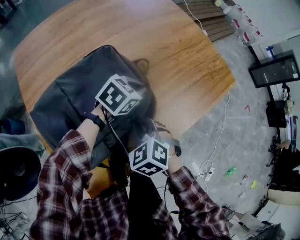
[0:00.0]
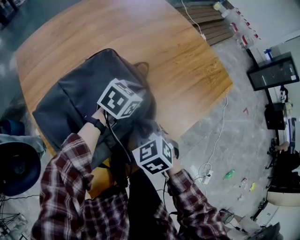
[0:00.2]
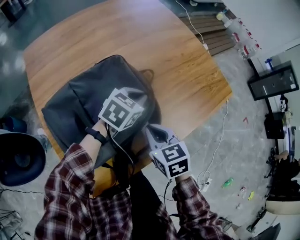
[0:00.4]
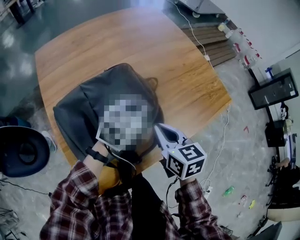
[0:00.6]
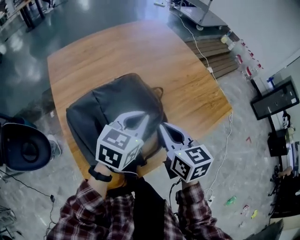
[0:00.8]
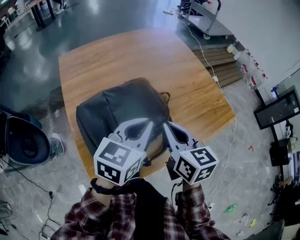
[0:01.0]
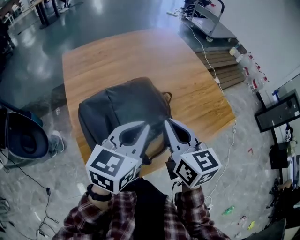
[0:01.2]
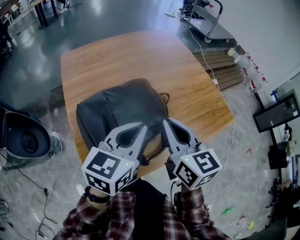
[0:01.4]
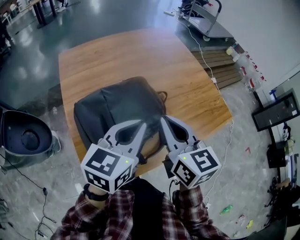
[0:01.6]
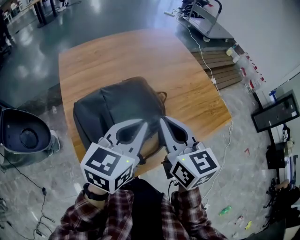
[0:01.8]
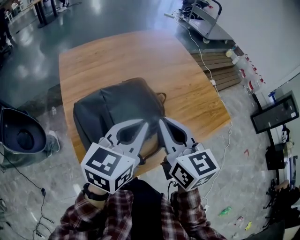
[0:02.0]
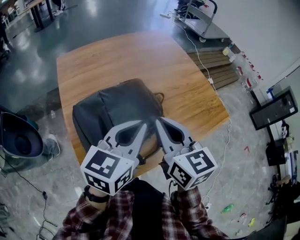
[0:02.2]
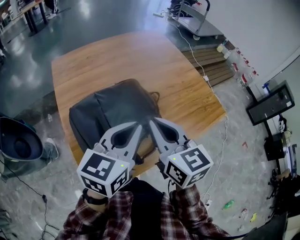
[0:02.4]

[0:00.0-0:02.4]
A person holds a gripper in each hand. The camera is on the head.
0:00.0 to 0:01.2: The right gripper shifts roughly 25 cm upward, and tips its fingers upward by approximately 40 degrees; the left gripper heads upward and backward, covering approximately 30 cm, and rotates approximately 40 degrees.
0:01.2 to 0:02.4: The grippers stay close to where they were, moving slightly.

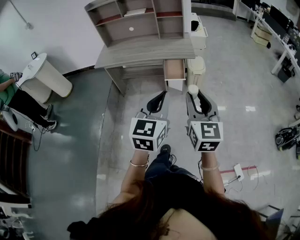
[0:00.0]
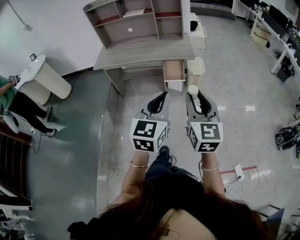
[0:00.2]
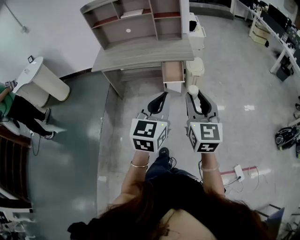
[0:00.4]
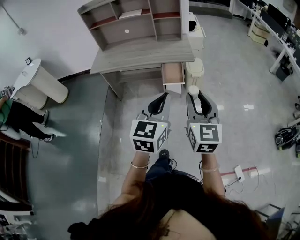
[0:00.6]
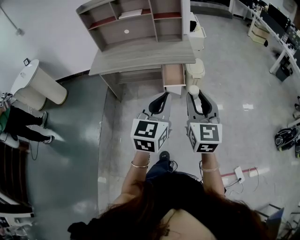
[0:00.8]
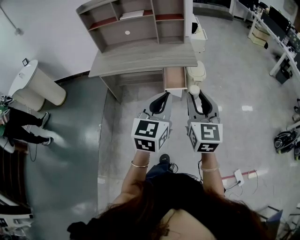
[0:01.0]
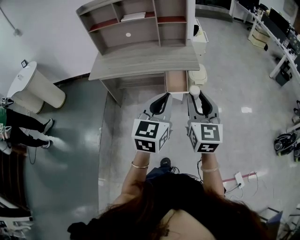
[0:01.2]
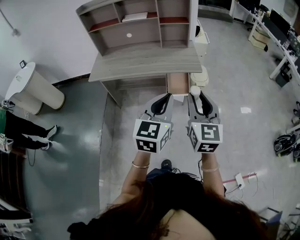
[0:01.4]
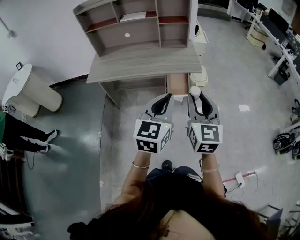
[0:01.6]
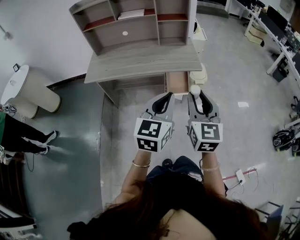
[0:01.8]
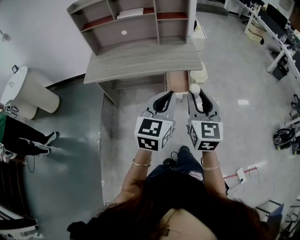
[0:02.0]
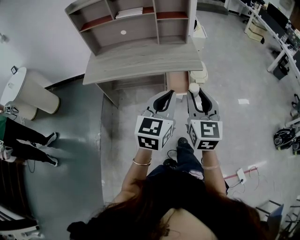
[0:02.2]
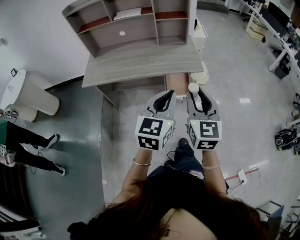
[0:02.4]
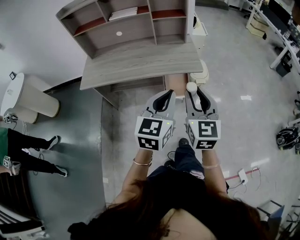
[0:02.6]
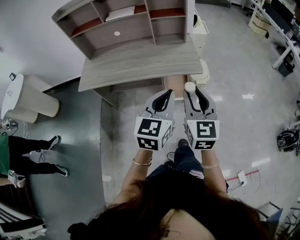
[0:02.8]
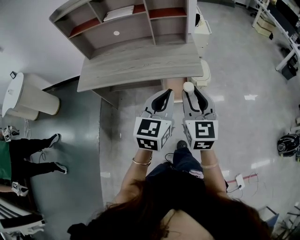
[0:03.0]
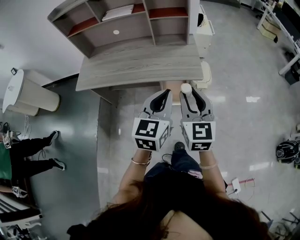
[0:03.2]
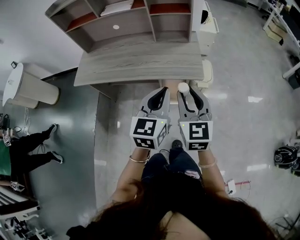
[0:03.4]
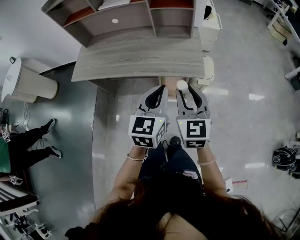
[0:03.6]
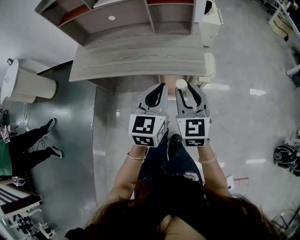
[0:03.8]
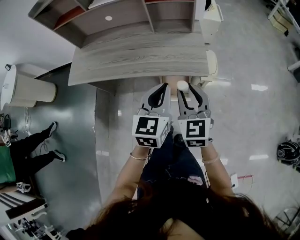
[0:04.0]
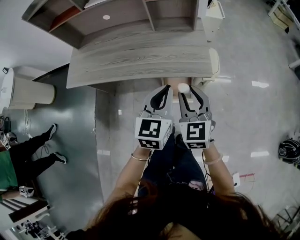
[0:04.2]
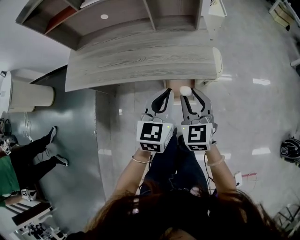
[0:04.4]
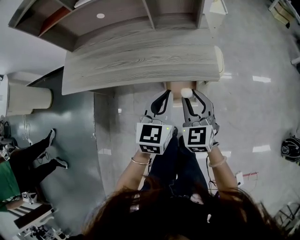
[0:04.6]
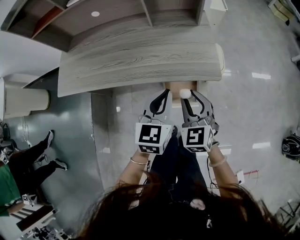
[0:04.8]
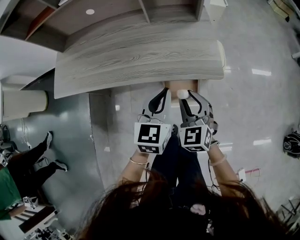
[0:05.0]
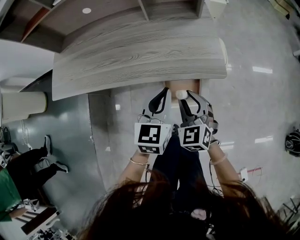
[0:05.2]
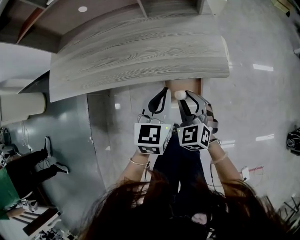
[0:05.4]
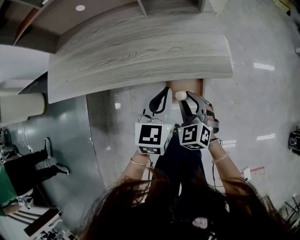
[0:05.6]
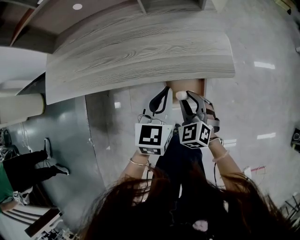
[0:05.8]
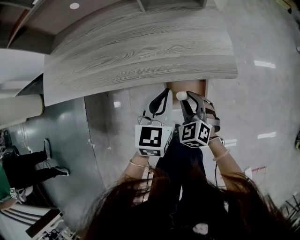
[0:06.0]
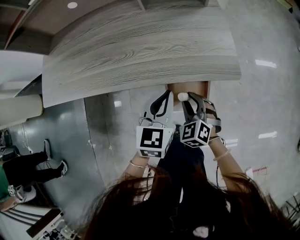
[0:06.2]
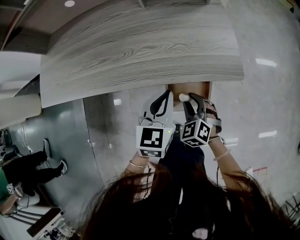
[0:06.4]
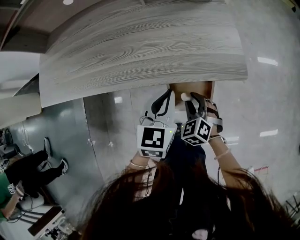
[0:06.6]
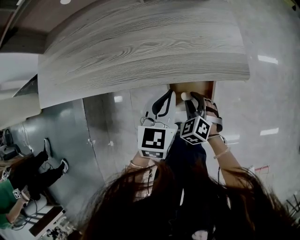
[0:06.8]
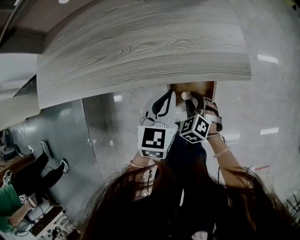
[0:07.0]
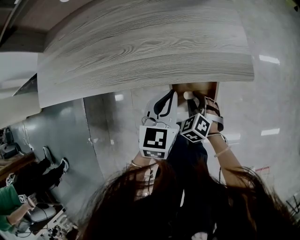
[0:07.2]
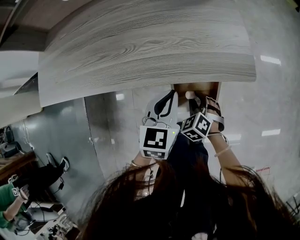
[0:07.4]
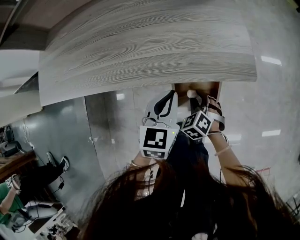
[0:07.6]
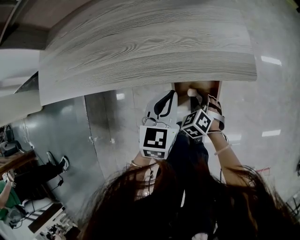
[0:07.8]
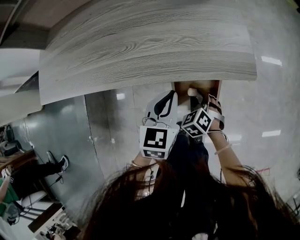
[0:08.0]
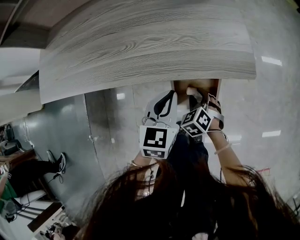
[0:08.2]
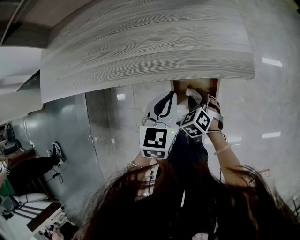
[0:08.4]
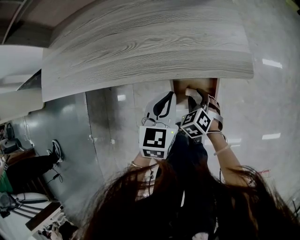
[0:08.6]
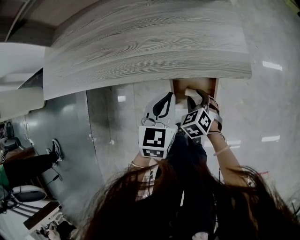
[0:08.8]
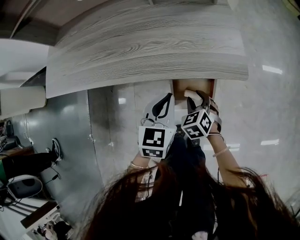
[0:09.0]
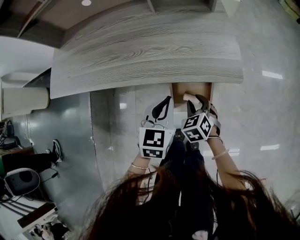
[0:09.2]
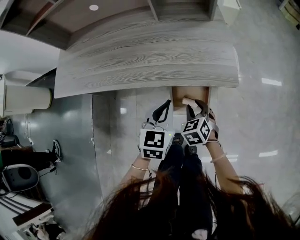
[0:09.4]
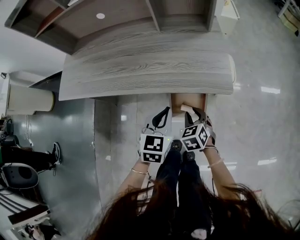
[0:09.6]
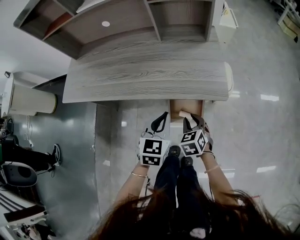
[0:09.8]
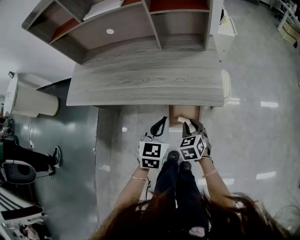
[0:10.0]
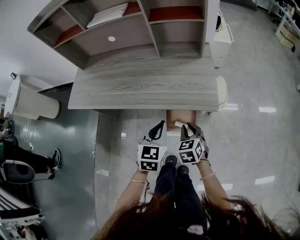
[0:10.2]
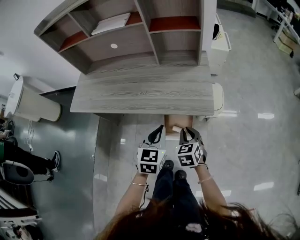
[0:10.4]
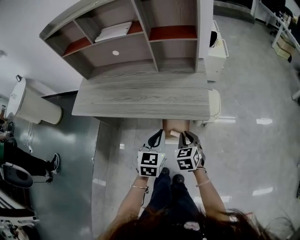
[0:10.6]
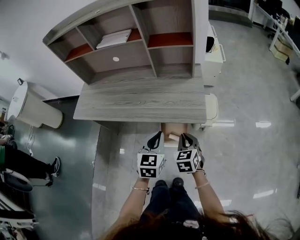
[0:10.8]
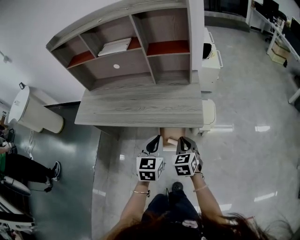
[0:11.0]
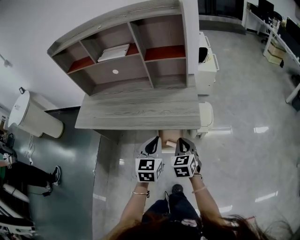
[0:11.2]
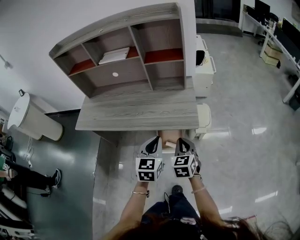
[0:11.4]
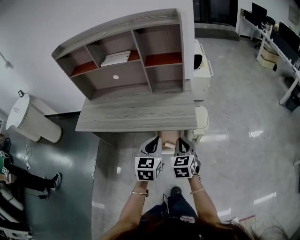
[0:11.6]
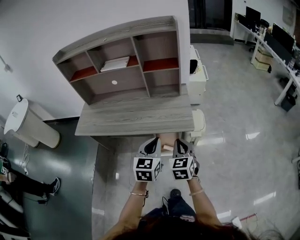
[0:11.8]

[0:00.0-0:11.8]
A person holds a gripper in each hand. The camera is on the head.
0:00.0 to 0:01.4: The two grippers go some 20 cm forward and to the left.
0:01.4 to 0:03.0: The two grippers go approximately 20 cm forward.
0:03.0 to 0:04.4: Both grippers move forward and downward, about 20 cm.
0:04.4 to 0:06.0: The right gripper shifts about 25 cm downward, and rotates about 30 degrees. Meanwhile the left gripper goes some 20 cm downward and forward.
0:06.0 to 0:07.4: The left gripper goes approximately 5 cm downward. Meanwhile the right gripper is displaced downward by some 15 cm.
0:07.4 to 0:08.8: The grippers stay close to where they were, moving slightly.
0:08.8 to 0:10.4: The two grippers go roughly 20 cm upward. The right gripper swivels roughly 20 degrees, and closes its fingers.
0:10.4 to 0:11.8: The grippers both shift upward and backward by about 20 cm.

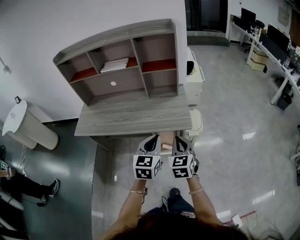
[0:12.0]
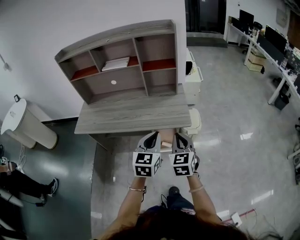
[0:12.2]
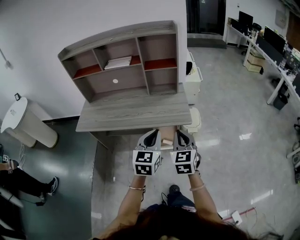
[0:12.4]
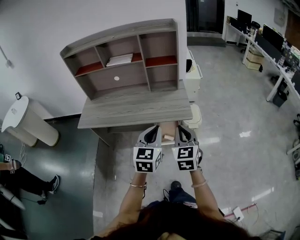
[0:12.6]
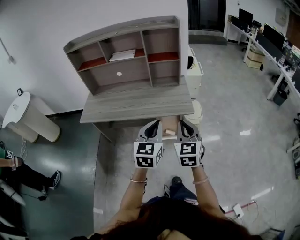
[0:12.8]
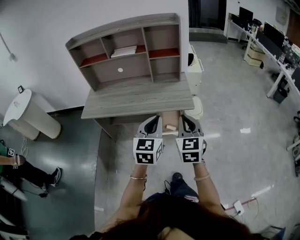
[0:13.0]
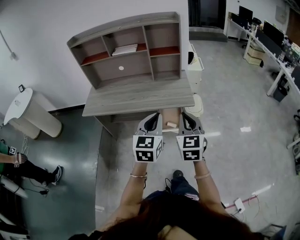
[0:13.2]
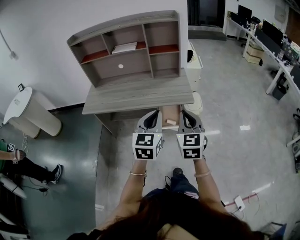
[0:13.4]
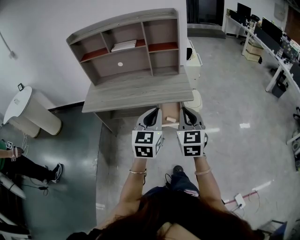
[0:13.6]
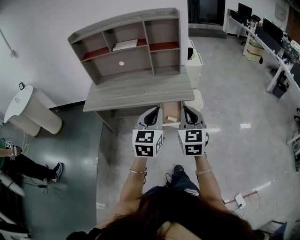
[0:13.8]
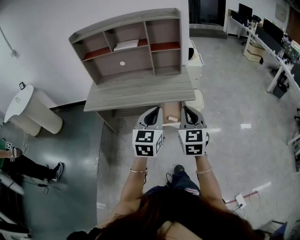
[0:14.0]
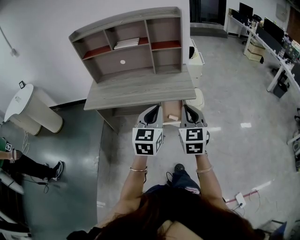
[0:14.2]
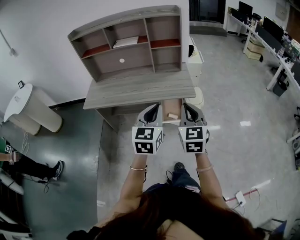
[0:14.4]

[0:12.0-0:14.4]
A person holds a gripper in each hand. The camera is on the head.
0:12.0 to 0:13.2: Both grippers travel together backward and upward, about 15 cm.
0:13.2 to 0:14.4: The grippers stay close to where they were, moving slightly.

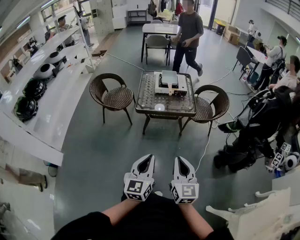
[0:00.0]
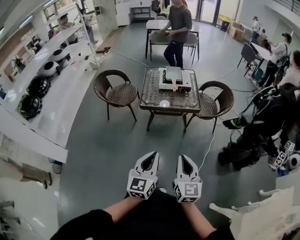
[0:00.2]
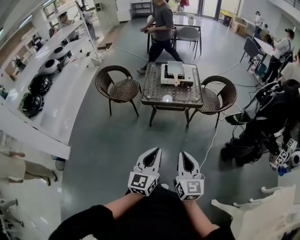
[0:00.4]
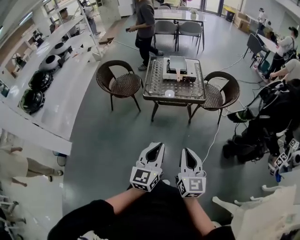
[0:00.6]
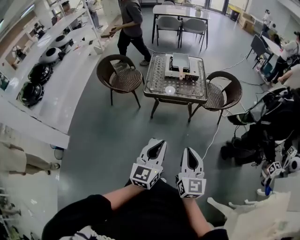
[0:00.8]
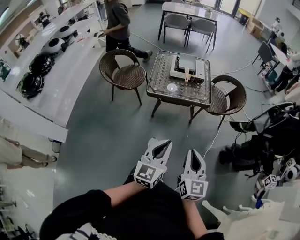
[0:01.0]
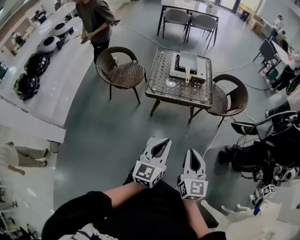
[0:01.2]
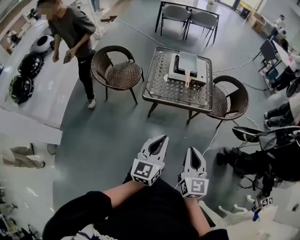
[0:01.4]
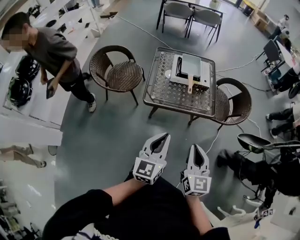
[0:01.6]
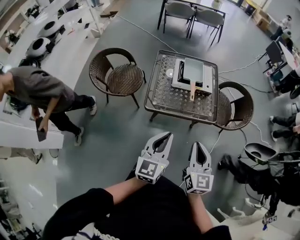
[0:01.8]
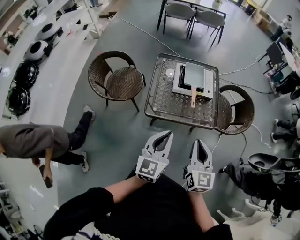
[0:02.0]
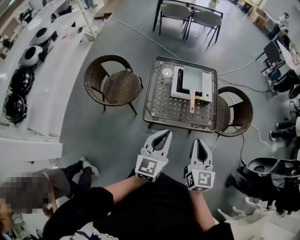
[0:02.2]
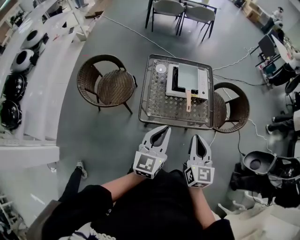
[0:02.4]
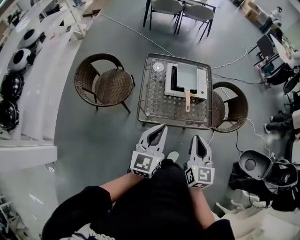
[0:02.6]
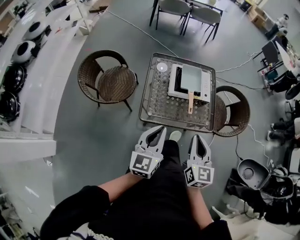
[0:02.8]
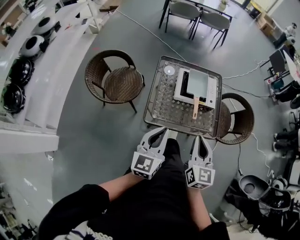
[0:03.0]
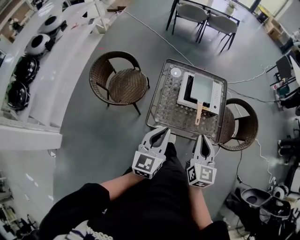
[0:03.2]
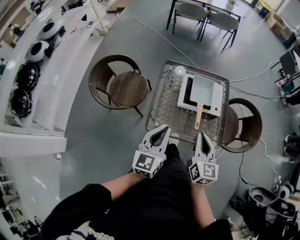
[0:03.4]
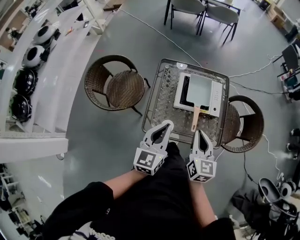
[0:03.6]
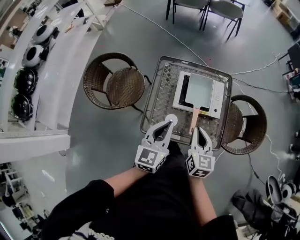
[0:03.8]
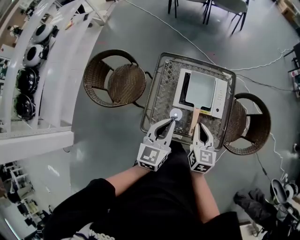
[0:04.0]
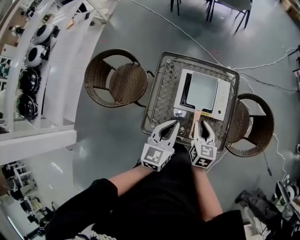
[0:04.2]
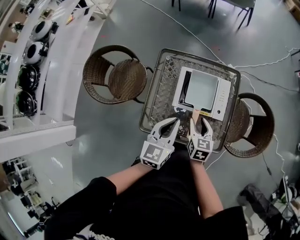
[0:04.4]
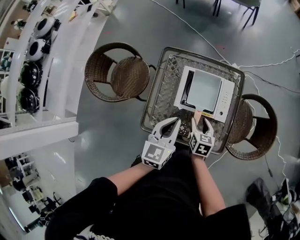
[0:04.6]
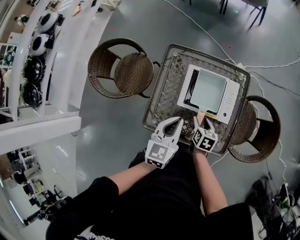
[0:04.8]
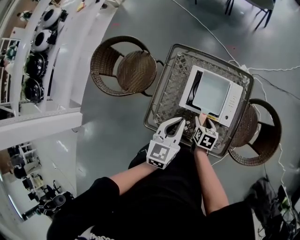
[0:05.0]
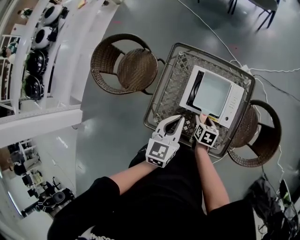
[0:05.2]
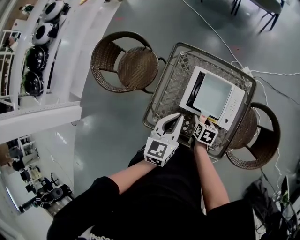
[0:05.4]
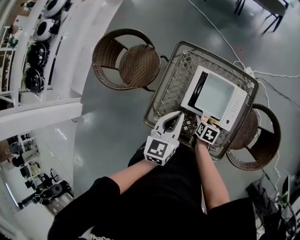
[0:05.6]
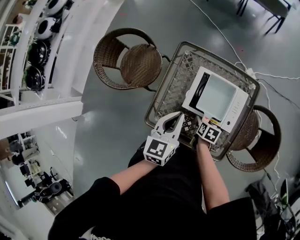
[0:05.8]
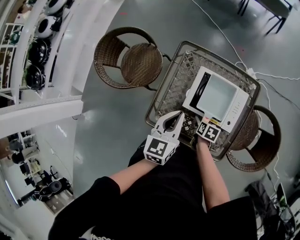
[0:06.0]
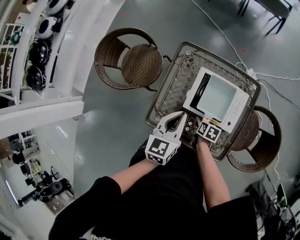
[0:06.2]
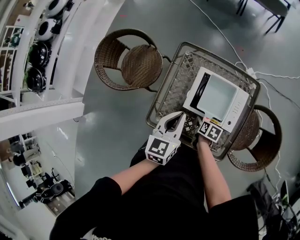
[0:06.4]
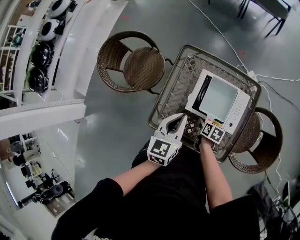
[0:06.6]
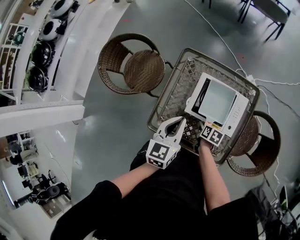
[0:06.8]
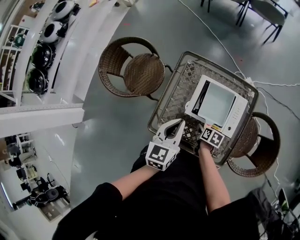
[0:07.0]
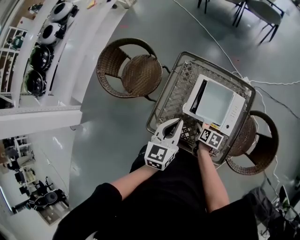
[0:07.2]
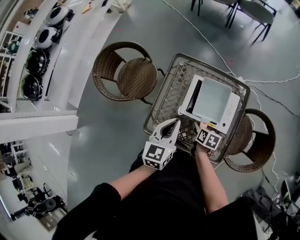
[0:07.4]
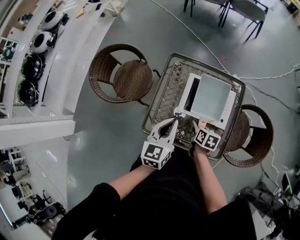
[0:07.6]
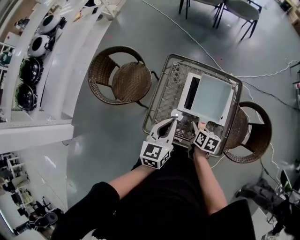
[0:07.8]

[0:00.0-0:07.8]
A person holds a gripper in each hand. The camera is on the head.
0:00.0 to 0:01.6: Both grippers travel together forward, approximately 30 cm.
0:01.6 to 0:03.2: The right gripper shifts about 25 cm forward, while the left gripper heads forward and to the left, covering some 25 cm.
0:03.2 to 0:04.6: The right gripper goes roughly 35 cm downward and forward, changes its angle by approximately 30 degrees, and opens, while the left gripper moves forward, to the right and downward, approximately 25 cm.
0:04.6 to 0:06.2: The right gripper is displaced downward by roughly 10 cm, and turns by approximately 30 degrees; the left gripper moves forward, some 5 cm.
0:06.2 to 0:07.8: The right gripper shifts some 15 cm upward; the left gripper goes roughly 5 cm backward.
